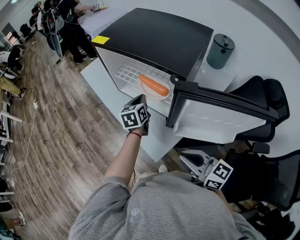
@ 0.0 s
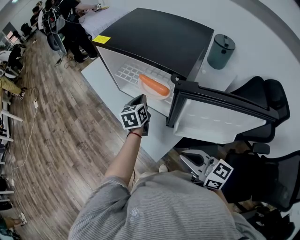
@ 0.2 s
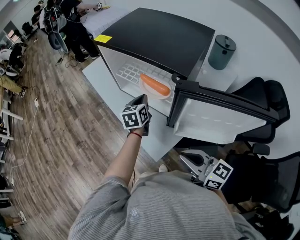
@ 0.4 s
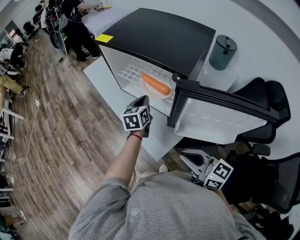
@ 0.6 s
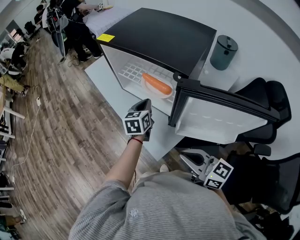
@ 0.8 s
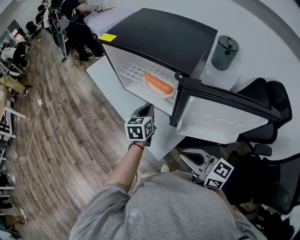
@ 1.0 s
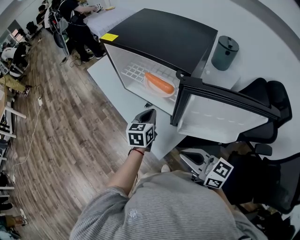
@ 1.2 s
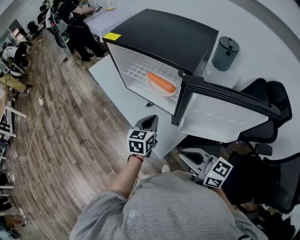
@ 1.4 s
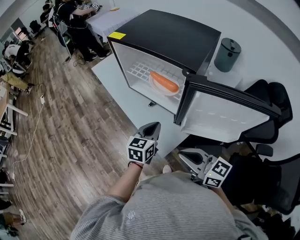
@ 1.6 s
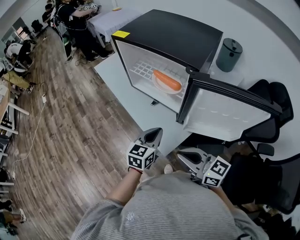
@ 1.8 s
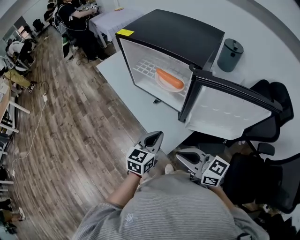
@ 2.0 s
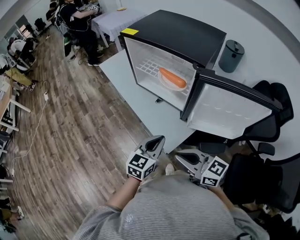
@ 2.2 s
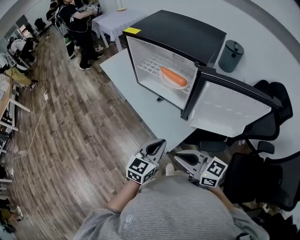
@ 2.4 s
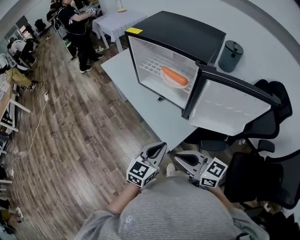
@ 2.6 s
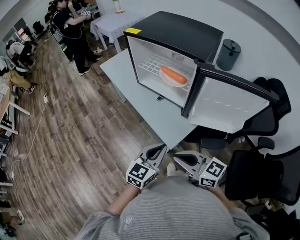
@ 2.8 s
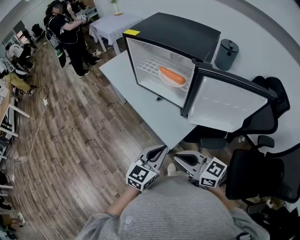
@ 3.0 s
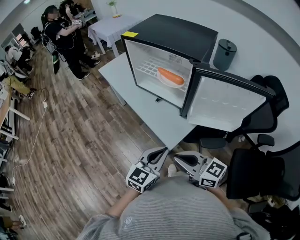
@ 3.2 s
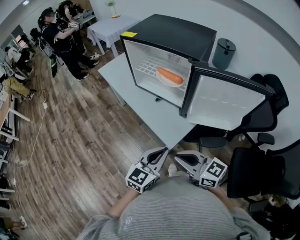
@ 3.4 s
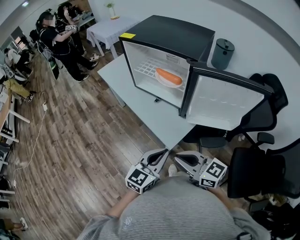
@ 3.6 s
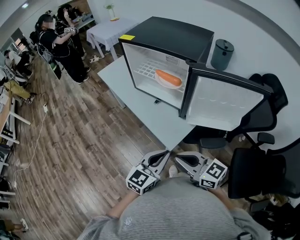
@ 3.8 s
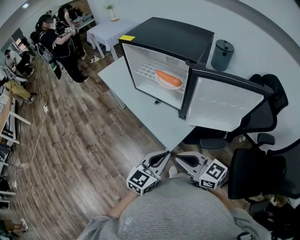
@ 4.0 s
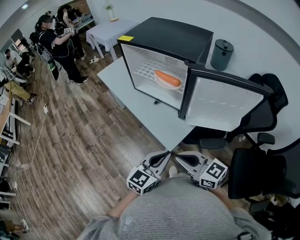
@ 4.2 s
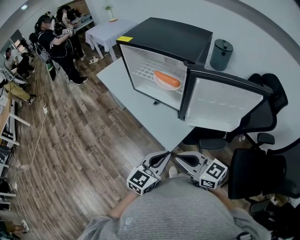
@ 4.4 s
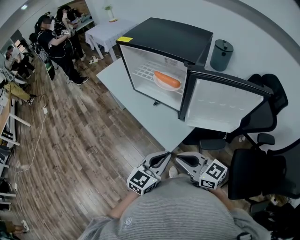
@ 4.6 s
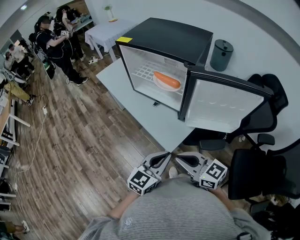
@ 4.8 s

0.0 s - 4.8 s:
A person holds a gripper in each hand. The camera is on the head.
0.0 s - 1.6 s: The left gripper moves backward, some 15 cm.
1.6 s - 3.2 s: The left gripper goes about 20 cm backward. Meanwhile the right gripper is displaced to the left and backward by about 10 cm.
3.2 s - 4.8 s: The grippers stay close to where they were, moving slightly.

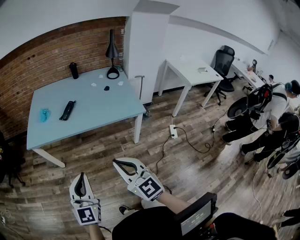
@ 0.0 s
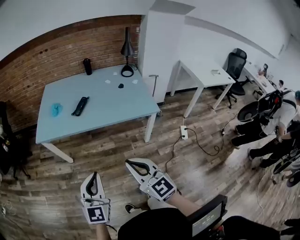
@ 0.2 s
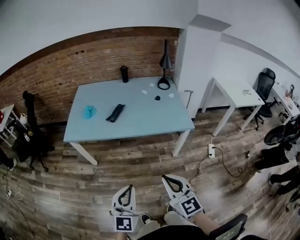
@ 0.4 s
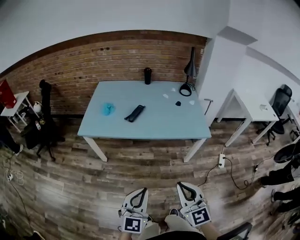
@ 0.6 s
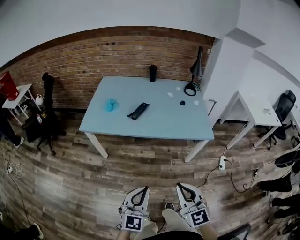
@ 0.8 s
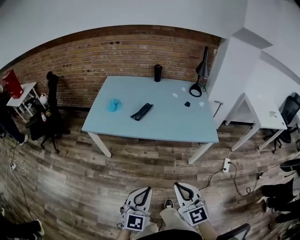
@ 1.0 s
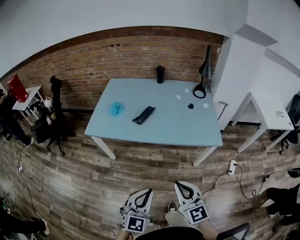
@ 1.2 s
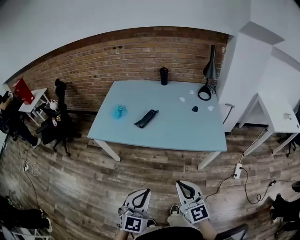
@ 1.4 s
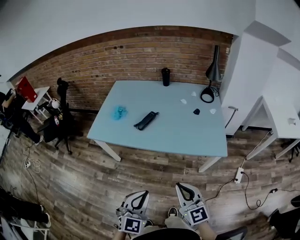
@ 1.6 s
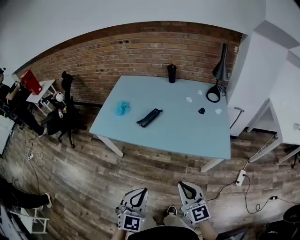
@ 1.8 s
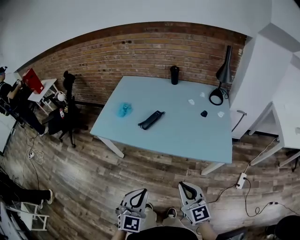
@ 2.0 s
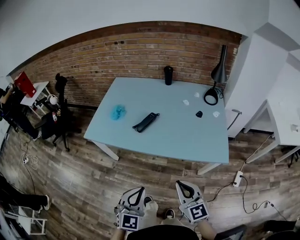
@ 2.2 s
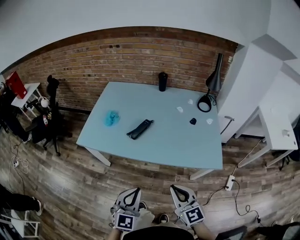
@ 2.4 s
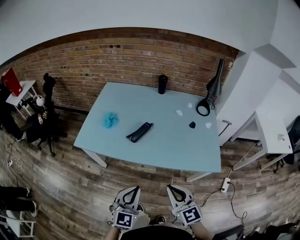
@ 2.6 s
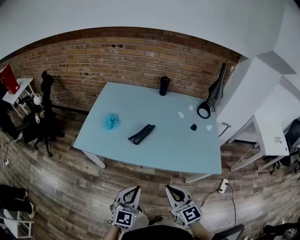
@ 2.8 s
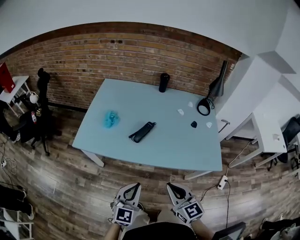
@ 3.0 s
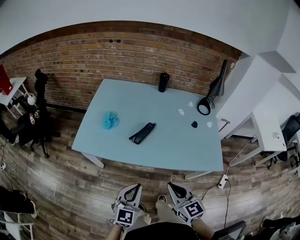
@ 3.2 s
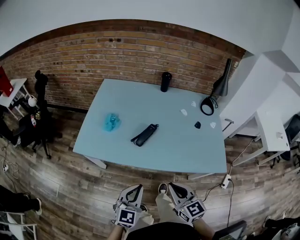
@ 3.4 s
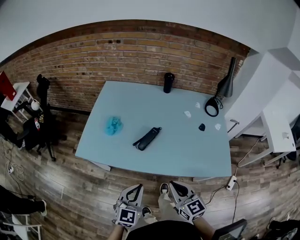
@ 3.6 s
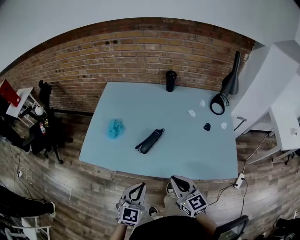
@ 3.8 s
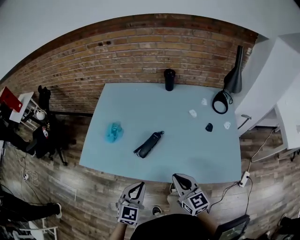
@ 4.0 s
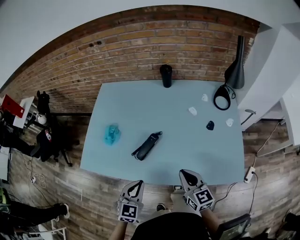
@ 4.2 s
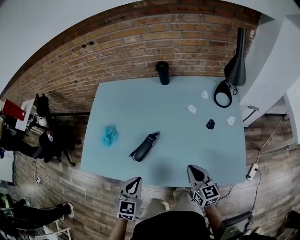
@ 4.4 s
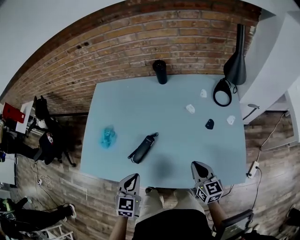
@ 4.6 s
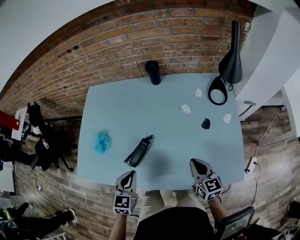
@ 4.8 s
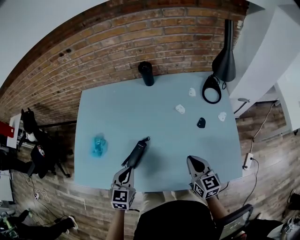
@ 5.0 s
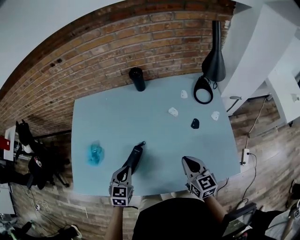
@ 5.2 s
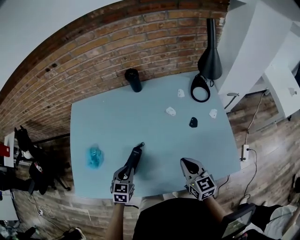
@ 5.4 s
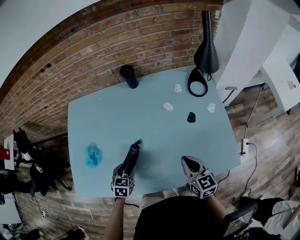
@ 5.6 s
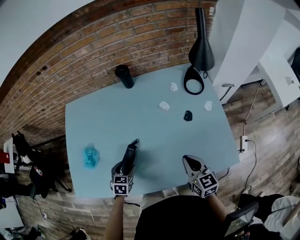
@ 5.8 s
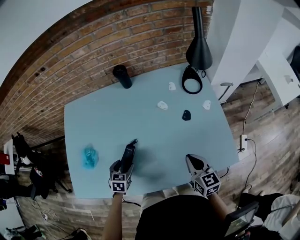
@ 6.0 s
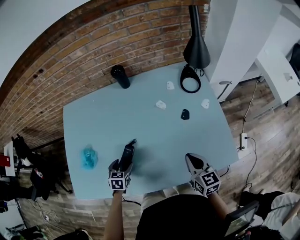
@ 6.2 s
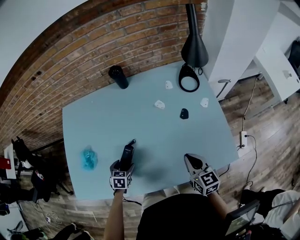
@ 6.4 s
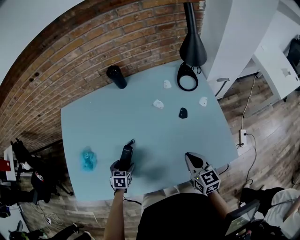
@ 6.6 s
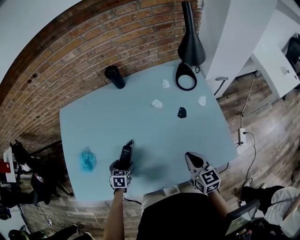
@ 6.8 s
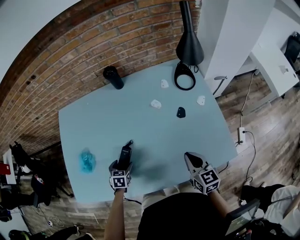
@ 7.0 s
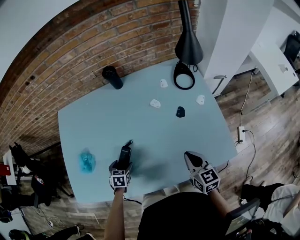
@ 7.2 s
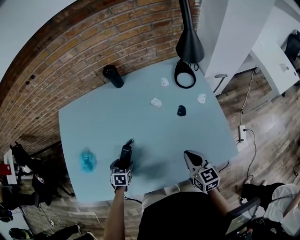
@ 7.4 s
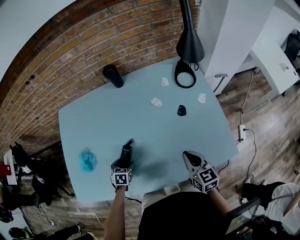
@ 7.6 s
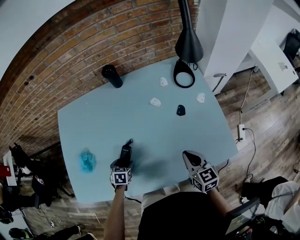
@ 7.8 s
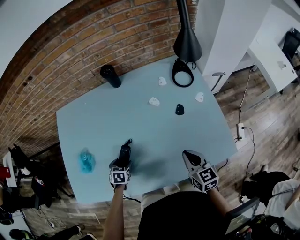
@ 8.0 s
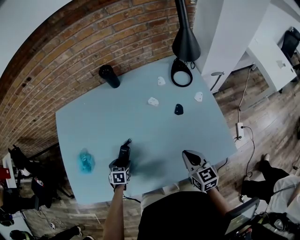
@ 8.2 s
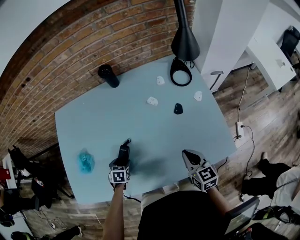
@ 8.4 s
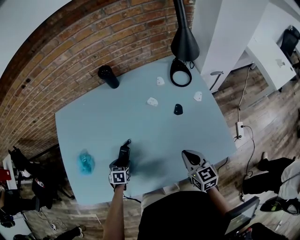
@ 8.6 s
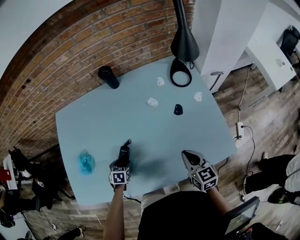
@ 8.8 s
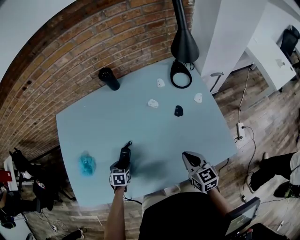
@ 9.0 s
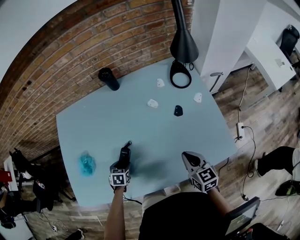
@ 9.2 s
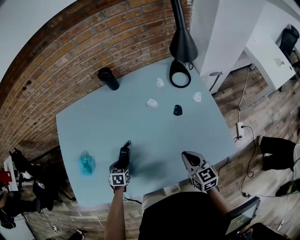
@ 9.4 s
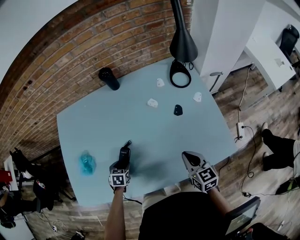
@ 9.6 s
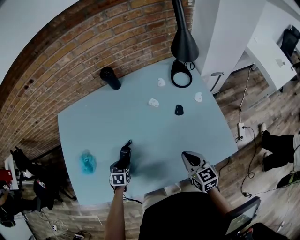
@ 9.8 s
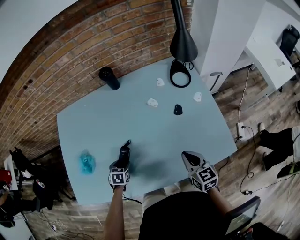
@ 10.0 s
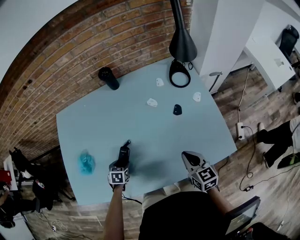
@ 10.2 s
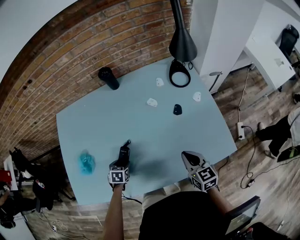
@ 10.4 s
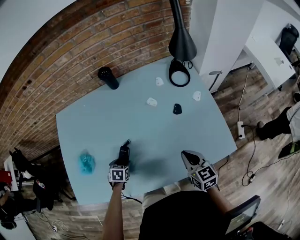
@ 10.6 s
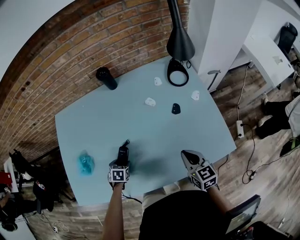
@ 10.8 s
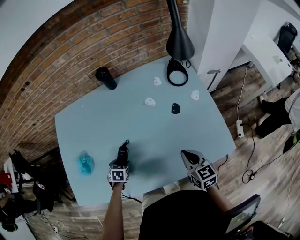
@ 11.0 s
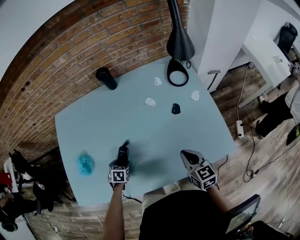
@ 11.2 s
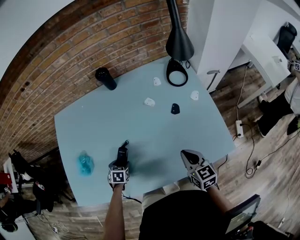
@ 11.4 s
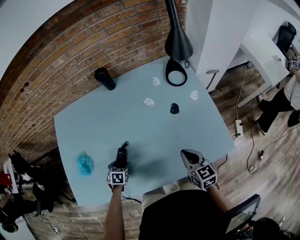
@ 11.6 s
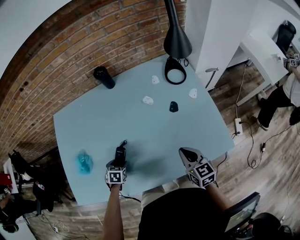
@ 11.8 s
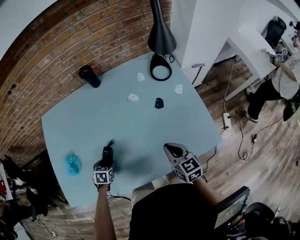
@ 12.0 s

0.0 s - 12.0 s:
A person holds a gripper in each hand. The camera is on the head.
0.0 s - 1.6 s: The grippers both shift forward and downward by some 15 cm.
1.6 s - 3.0 s: The grippers both shift forward and to the left by roughly 20 cm.
3.0 s - 4.4 s: The left gripper shifts some 20 cm forward, and rotates some 20 degrees. The right gripper goes approximately 30 cm forward, to the right and downward, and swivels approximately 20 degrees.
4.4 s - 6.0 s: The left gripper heads downward and forward, covering roughly 20 cm, changes its angle by some 20 degrees, and opens up, while the right gripper is displaced to the right by approximately 5 cm.
6.0 s - 7.6 s: The left gripper moves downward, approximately 5 cm.
7.6 s - 9.0 s: The two grippers keep their place.
9.0 s - 10.4 s: Both grippers stay put.
10.4 s - 12.0 s: There are only small adjustments of the grippers.

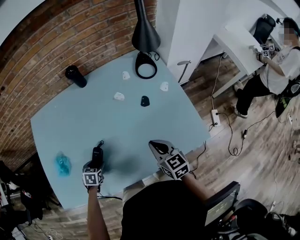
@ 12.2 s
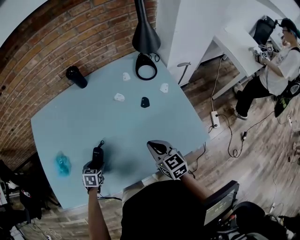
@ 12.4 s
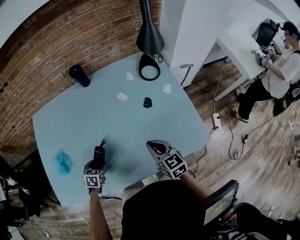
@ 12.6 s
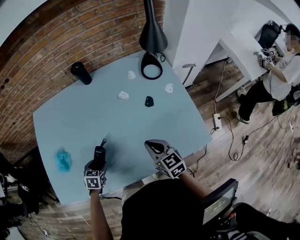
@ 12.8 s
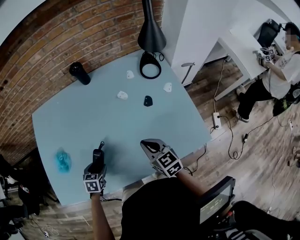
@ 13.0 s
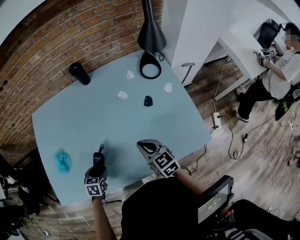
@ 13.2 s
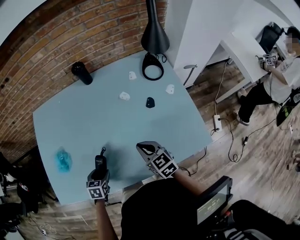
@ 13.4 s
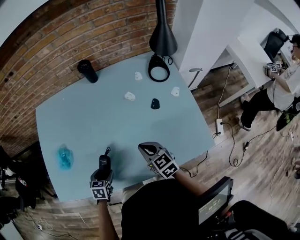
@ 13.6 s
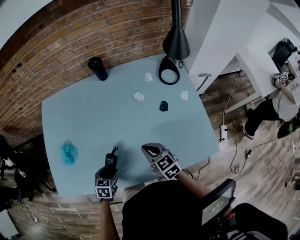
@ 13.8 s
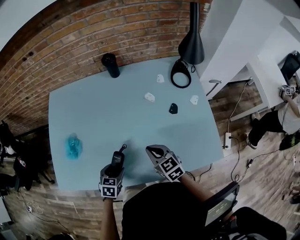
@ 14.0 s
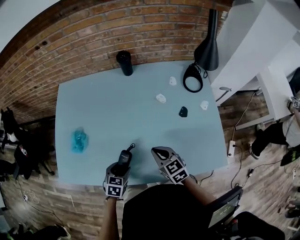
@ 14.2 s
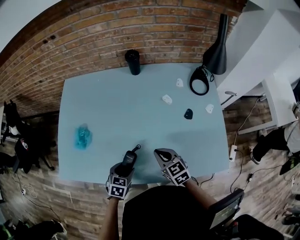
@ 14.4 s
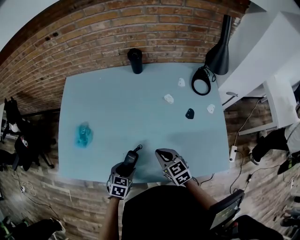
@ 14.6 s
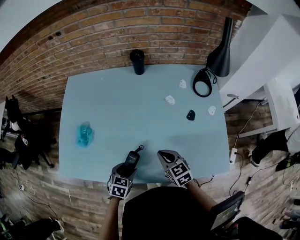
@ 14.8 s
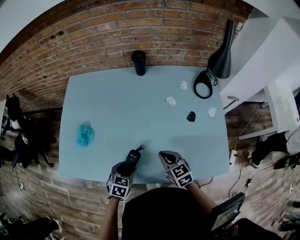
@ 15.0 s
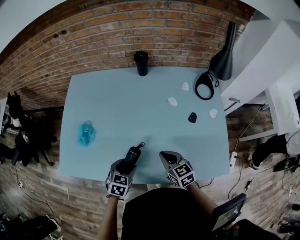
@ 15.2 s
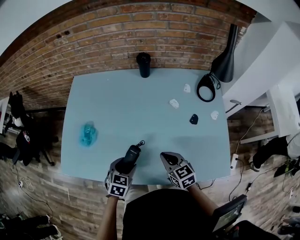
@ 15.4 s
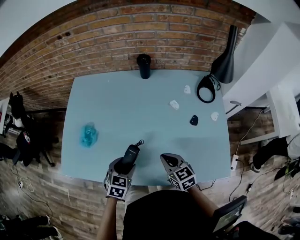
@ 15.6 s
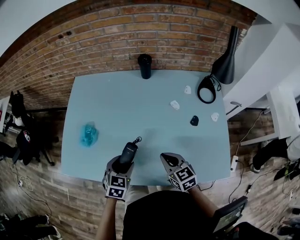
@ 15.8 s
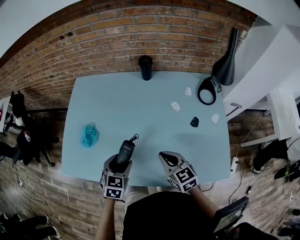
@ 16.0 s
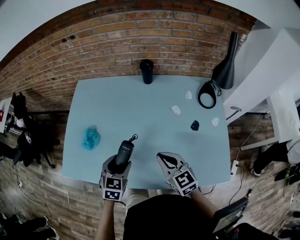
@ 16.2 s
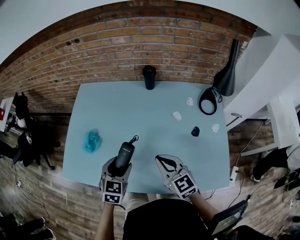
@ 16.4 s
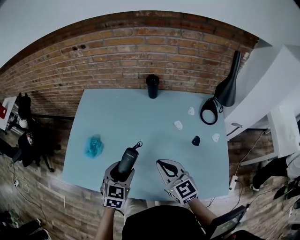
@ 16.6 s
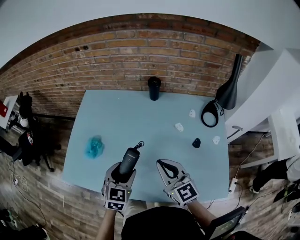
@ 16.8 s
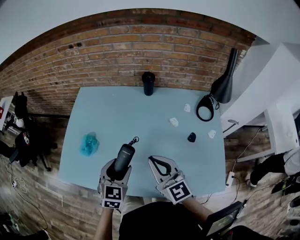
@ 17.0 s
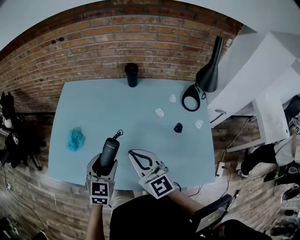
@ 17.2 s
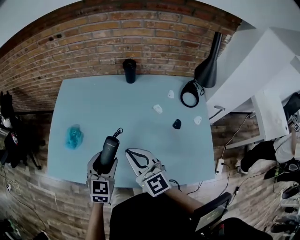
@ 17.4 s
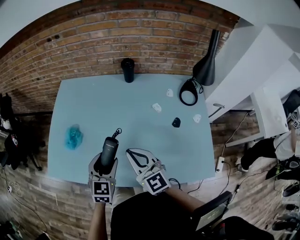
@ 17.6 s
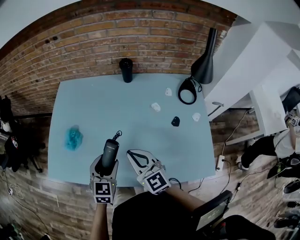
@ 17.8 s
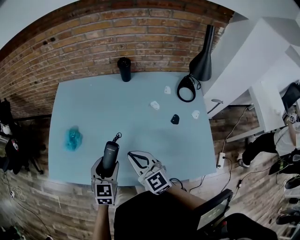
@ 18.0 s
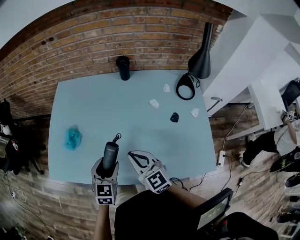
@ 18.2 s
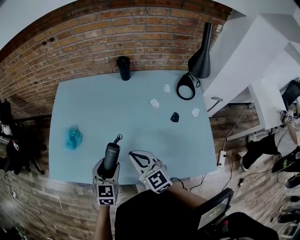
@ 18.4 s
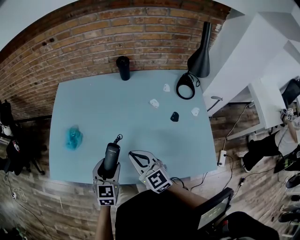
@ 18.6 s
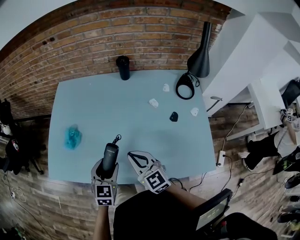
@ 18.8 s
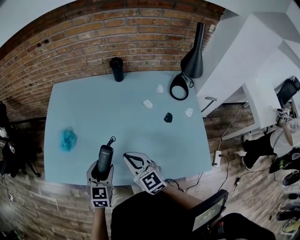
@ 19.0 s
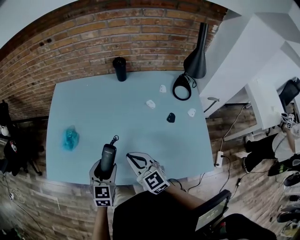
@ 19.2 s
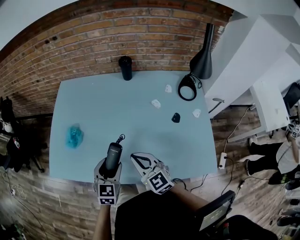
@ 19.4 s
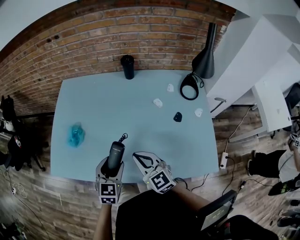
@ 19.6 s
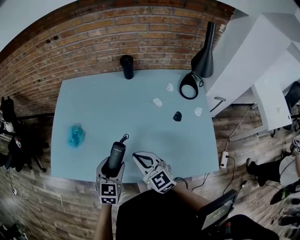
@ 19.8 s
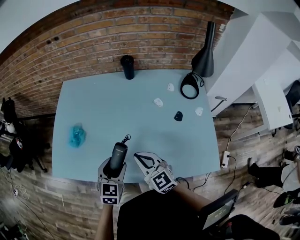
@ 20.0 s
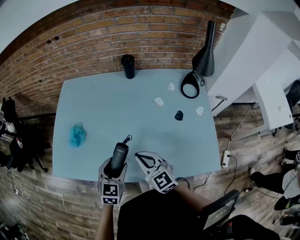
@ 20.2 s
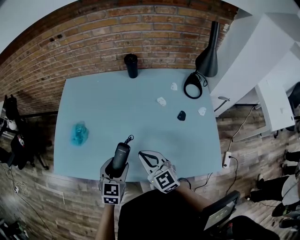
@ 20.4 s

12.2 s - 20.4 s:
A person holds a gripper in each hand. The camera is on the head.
12.2 s - 13.8 s: The right gripper moves to the left, roughly 10 cm. The left gripper shifts roughly 5 cm backward.
13.8 s - 15.4 s: The left gripper heads upward, covering approximately 5 cm.
15.4 s - 17.2 s: The grippers both shift upward by roughly 15 cm. The left gripper swivels approximately 20 degrees; the right gripper rotates some 30 degrees.
17.2 s - 18.8 s: The right gripper goes roughly 10 cm downward, while the left gripper travels downward and backward by approximately 10 cm.
18.8 s - 20.4 s: The grippers make only small movements.
